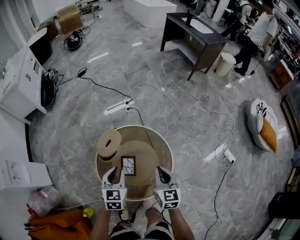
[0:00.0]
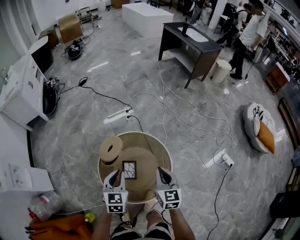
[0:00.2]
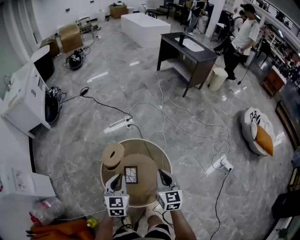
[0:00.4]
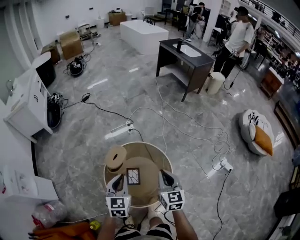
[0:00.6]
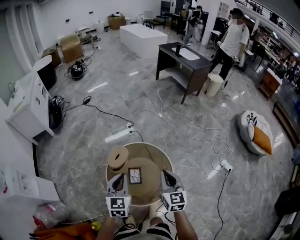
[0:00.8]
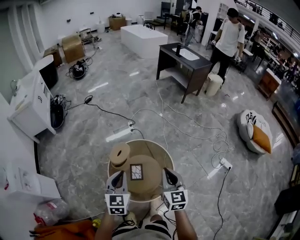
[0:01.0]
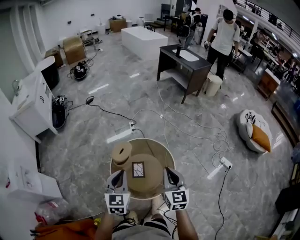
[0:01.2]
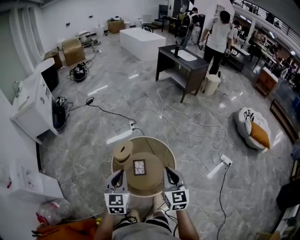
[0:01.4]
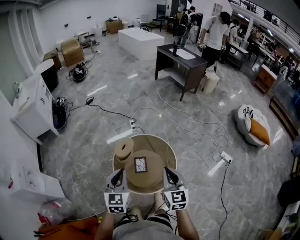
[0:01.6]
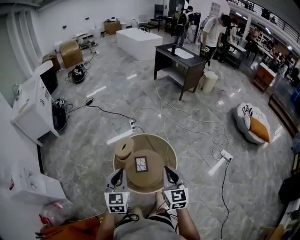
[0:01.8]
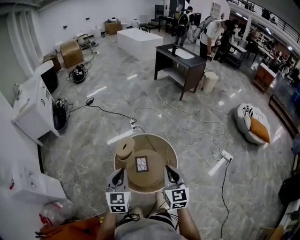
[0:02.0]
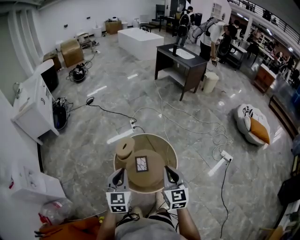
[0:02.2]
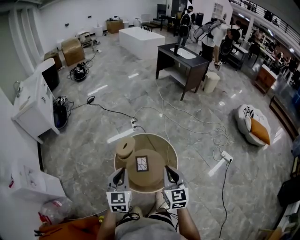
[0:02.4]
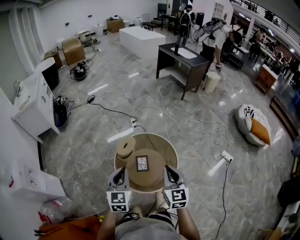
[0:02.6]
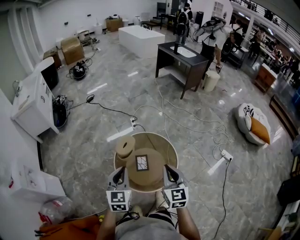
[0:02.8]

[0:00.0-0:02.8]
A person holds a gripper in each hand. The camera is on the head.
0:00.0 to 0:01.4: The grippers both shift upward and backward by approximately 30 cm.
0:01.4 to 0:02.8: There are only small adjustments of the grippers.

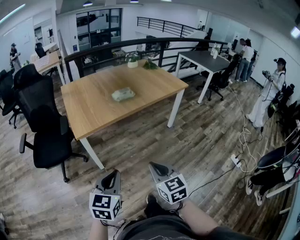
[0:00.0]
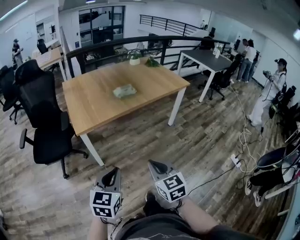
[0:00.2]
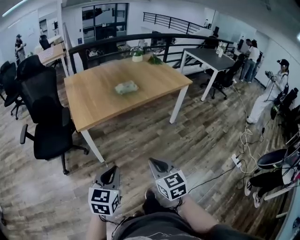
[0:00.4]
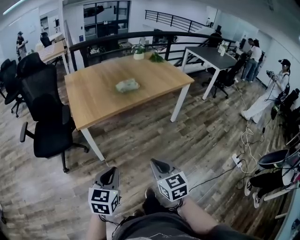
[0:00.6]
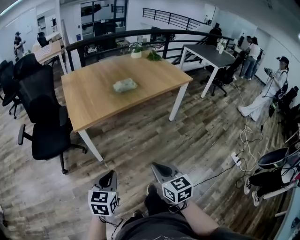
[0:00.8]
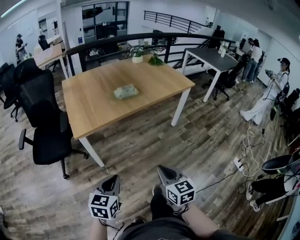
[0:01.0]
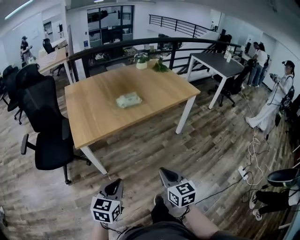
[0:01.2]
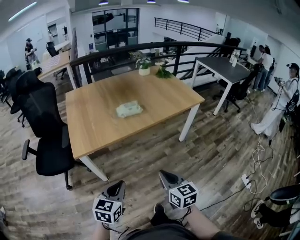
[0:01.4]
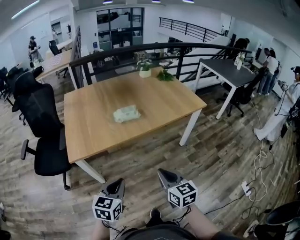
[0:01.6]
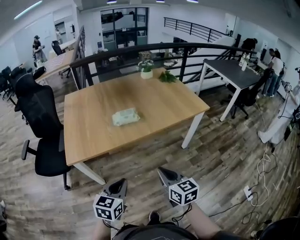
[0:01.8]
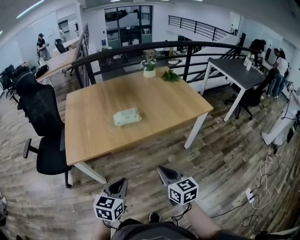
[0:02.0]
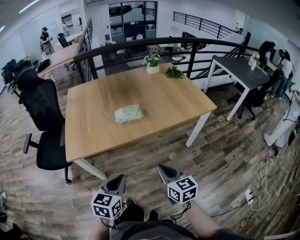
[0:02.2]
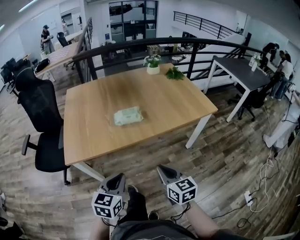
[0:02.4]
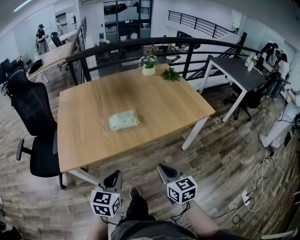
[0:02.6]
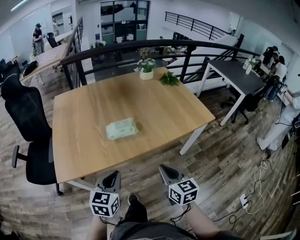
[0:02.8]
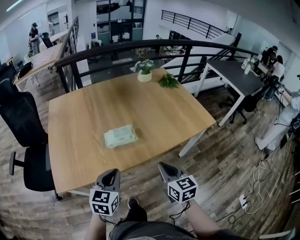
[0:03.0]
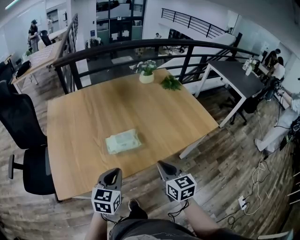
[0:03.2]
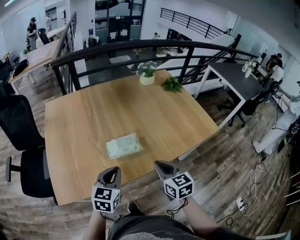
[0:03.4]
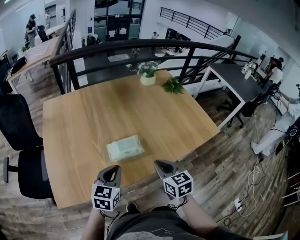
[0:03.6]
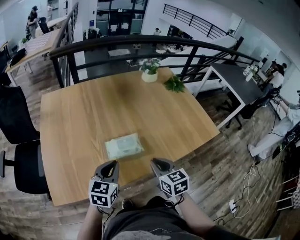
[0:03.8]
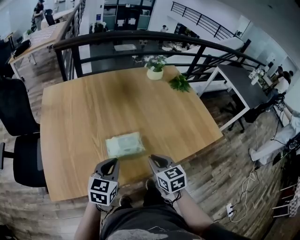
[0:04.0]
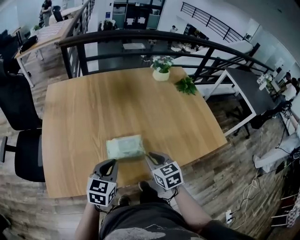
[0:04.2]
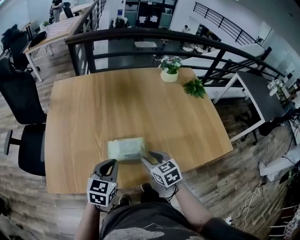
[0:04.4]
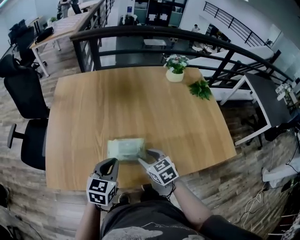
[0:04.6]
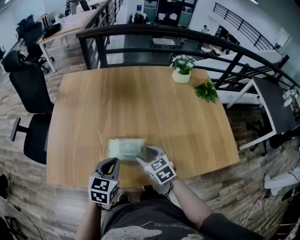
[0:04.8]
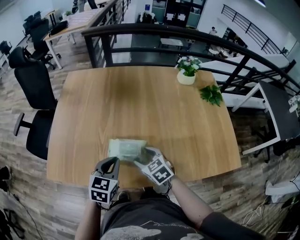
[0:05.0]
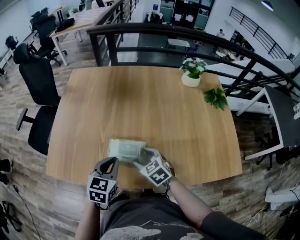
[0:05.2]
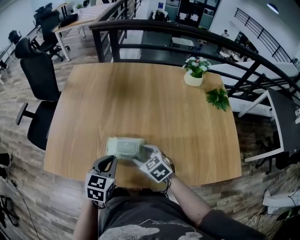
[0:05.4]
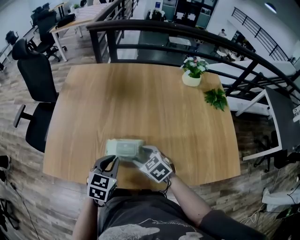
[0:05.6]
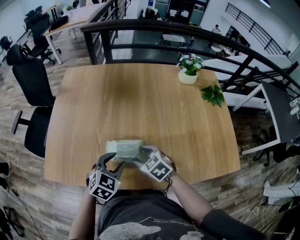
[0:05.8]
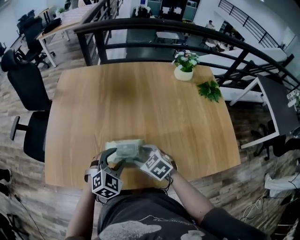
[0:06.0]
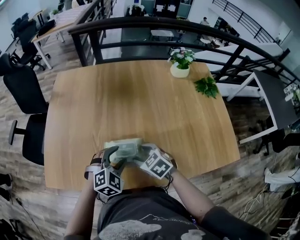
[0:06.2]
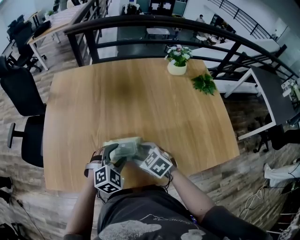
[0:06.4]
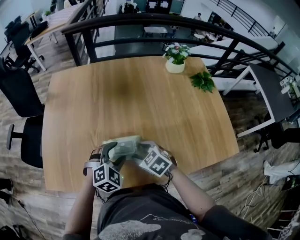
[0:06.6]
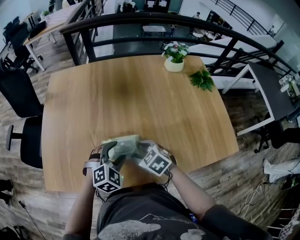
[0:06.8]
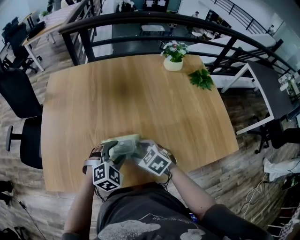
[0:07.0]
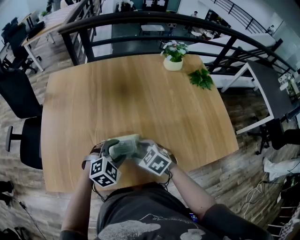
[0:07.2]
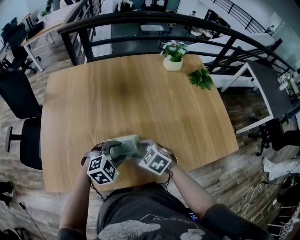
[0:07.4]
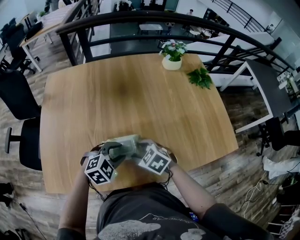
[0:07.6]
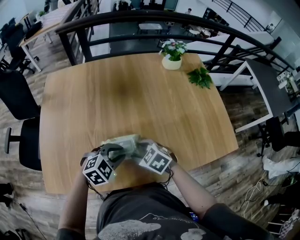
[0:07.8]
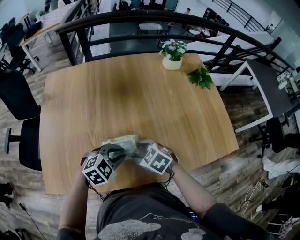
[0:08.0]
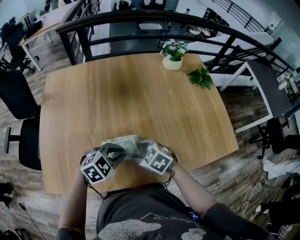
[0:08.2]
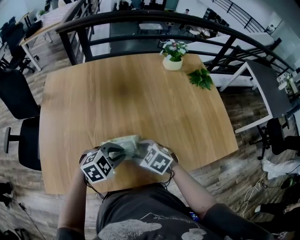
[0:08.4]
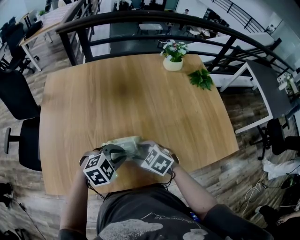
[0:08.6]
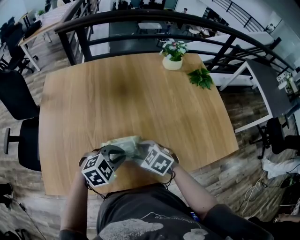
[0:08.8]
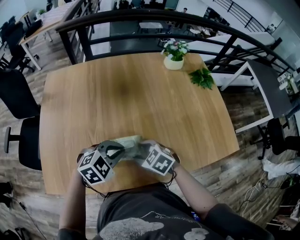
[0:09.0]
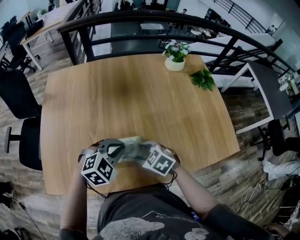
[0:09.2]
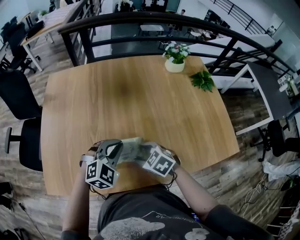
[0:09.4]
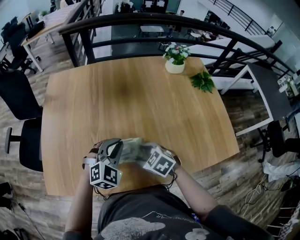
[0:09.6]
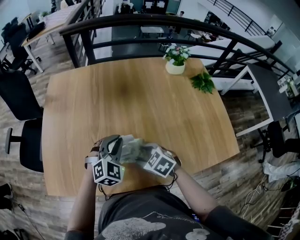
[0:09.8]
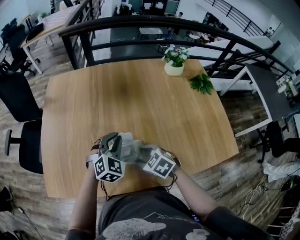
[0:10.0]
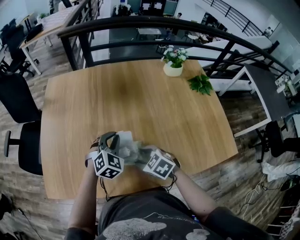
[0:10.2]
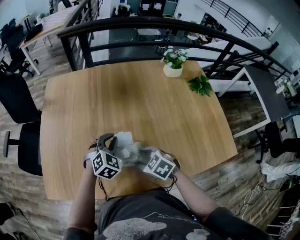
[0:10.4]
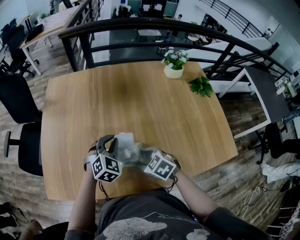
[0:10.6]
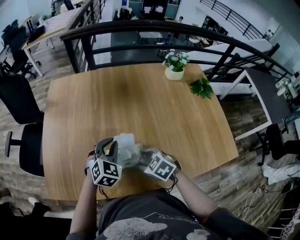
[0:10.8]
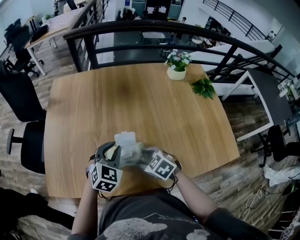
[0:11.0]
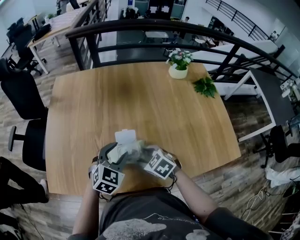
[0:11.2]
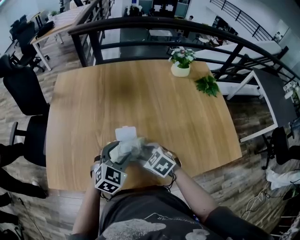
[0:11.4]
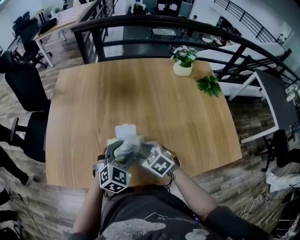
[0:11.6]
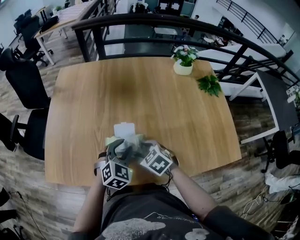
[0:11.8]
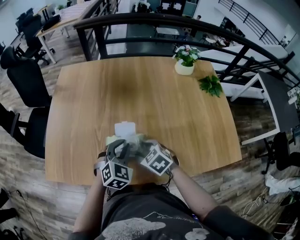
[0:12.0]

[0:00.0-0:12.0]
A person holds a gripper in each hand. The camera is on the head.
0:00.0 to 0:01.6: Both grippers travel together forward and to the right, roughly 25 cm.
0:01.6 to 0:03.0: The grippers both shift forward by some 25 cm.
0:03.0 to 0:04.4: The right gripper shifts roughly 25 cm forward and downward, turns by about 30 degrees, and opens up, while the left gripper shifts approximately 15 cm forward.
0:04.4 to 0:06.0: The left gripper travels to the right by roughly 5 cm, swivels approximately 40 degrees, and opens its fingers. Meanwhile the right gripper moves roughly 5 cm, turns by roughly 30 degrees, and opens.
0:06.0 to 0:07.6: The left gripper turns by some 30 degrees.
0:07.6 to 0:09.0: The left gripper closes its fingers.
0:09.0 to 0:10.4: The left gripper travels forward by approximately 10 cm, and turns by roughly 30 degrees.
0:10.4 to 0:12.0: The left gripper heads backward, covering about 10 cm, and opens, then closes once more.

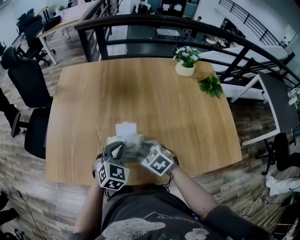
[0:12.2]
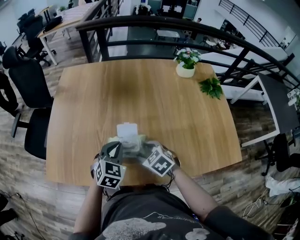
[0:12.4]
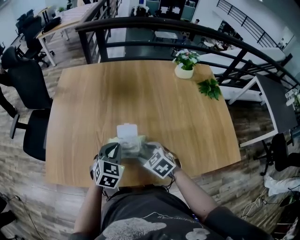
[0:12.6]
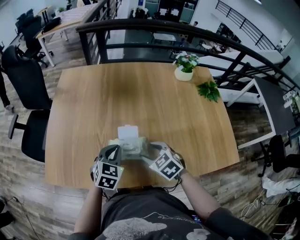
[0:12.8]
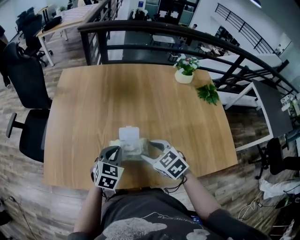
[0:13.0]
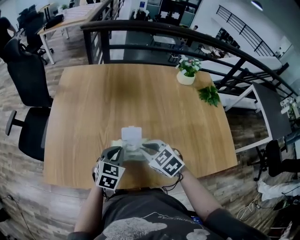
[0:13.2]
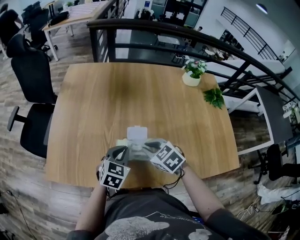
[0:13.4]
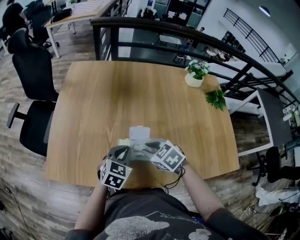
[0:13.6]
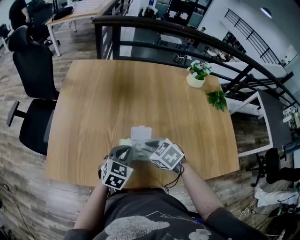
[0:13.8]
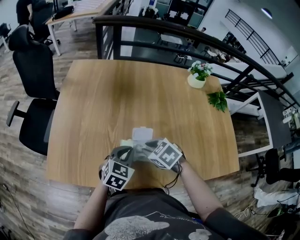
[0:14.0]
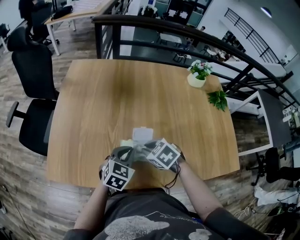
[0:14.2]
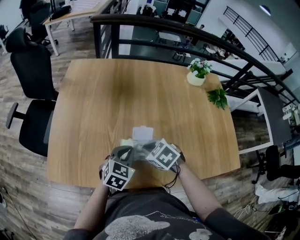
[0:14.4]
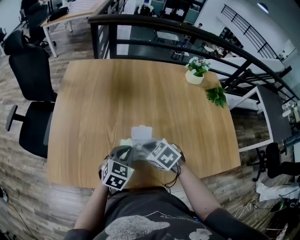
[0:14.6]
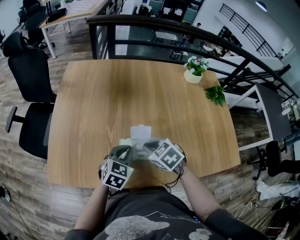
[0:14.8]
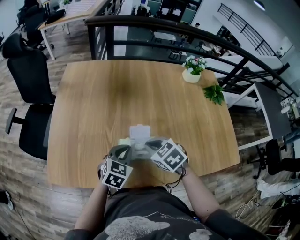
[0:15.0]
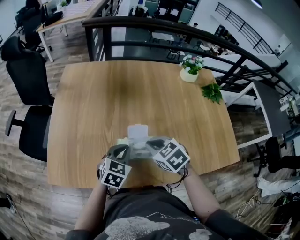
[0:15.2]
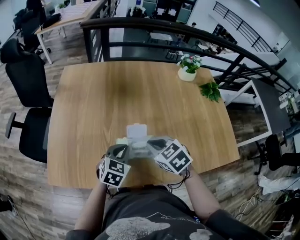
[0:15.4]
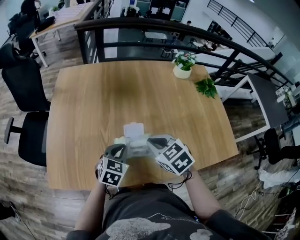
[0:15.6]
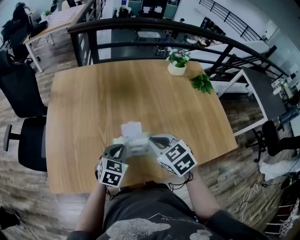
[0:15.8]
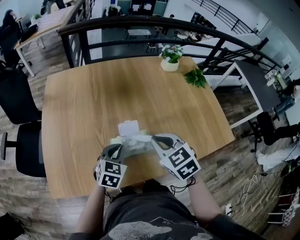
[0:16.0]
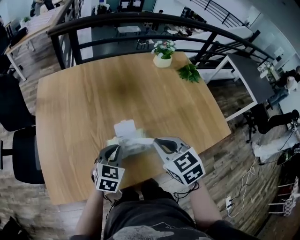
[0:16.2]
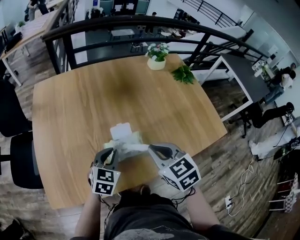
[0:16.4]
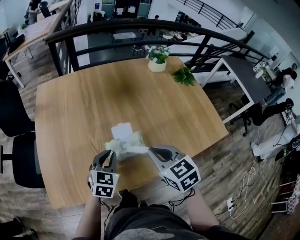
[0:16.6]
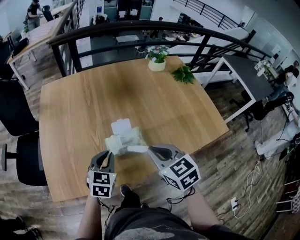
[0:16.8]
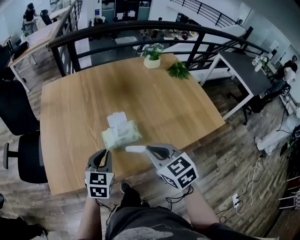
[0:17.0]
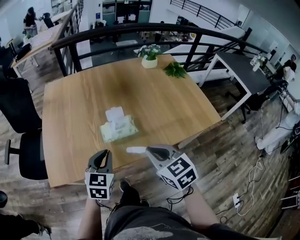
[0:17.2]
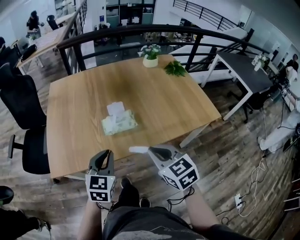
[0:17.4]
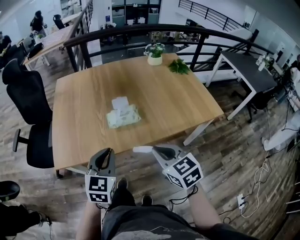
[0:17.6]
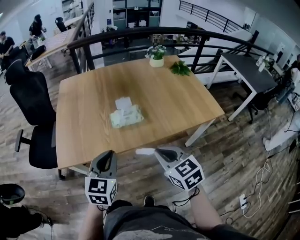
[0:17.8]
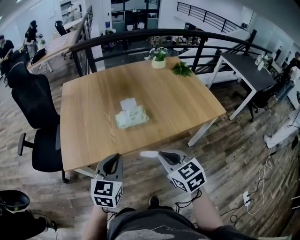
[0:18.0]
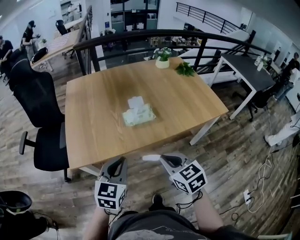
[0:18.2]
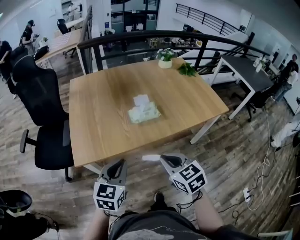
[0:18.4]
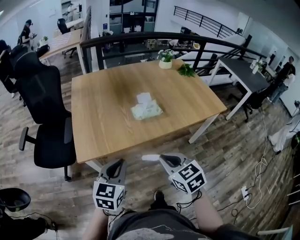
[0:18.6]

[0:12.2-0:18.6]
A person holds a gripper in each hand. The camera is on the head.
0:12.2 to 0:13.8: The right gripper ends up some 5 cm from where it was, and closes its fingers.
0:13.8 to 0:15.4: The right gripper goes roughly 5 cm upward.
0:15.4 to 0:17.0: The grippers both shift backward and upward by roughly 15 cm. The right gripper changes its angle by about 30 degrees.
0:17.0 to 0:18.6: The grippers both shift backward and to the left by approximately 30 cm.

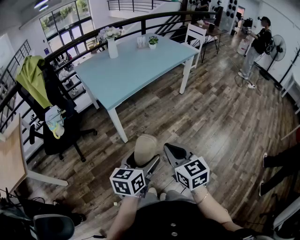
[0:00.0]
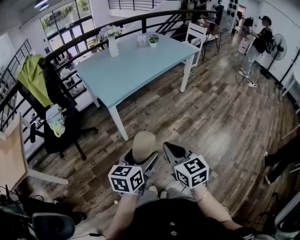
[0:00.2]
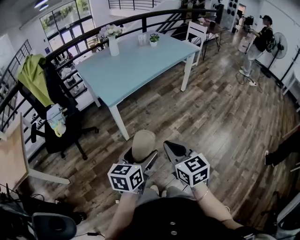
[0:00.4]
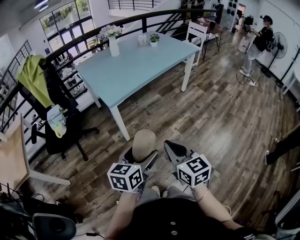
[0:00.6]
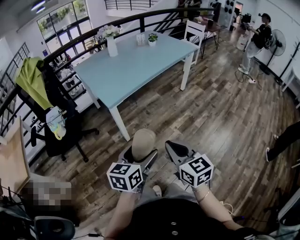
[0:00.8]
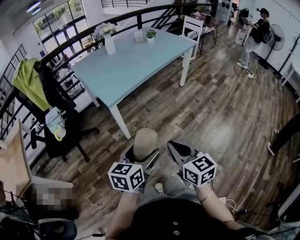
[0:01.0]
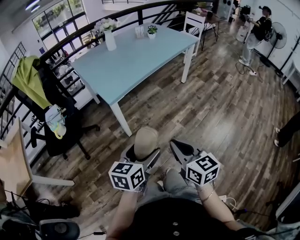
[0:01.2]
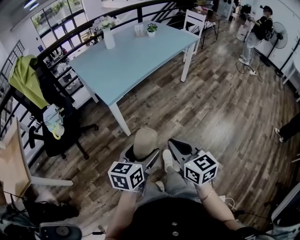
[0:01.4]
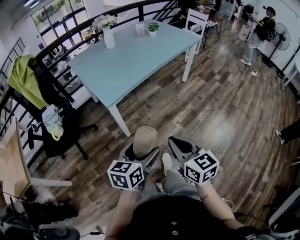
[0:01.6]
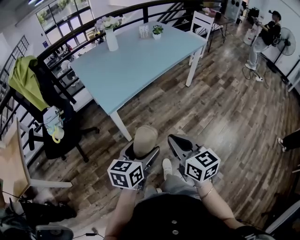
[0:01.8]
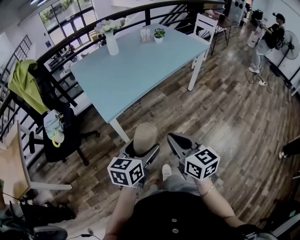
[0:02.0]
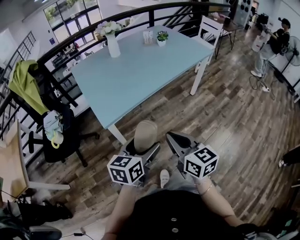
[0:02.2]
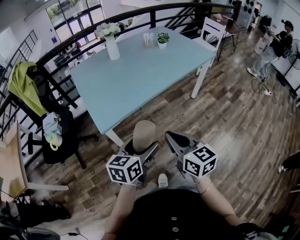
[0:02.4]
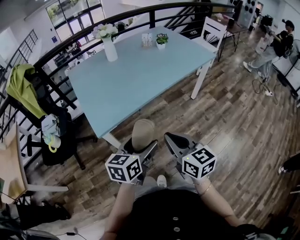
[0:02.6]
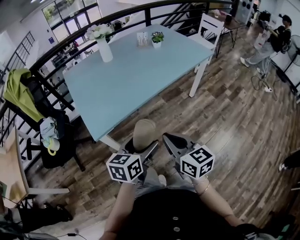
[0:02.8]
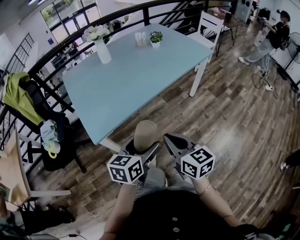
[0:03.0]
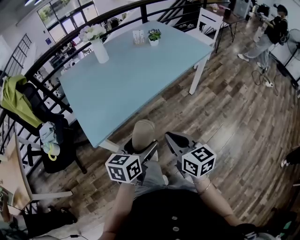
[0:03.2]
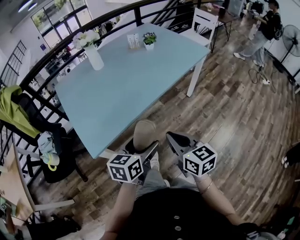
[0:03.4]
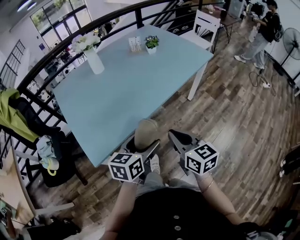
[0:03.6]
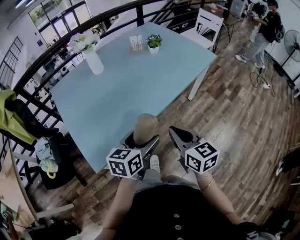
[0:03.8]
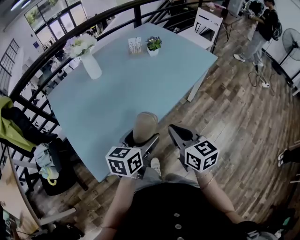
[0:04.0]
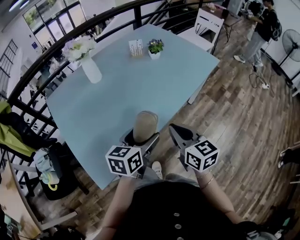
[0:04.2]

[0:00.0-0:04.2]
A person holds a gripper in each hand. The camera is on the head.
0:00.0 to 0:01.4: The left gripper changes place by some 5 cm.
0:01.4 to 0:02.8: The grippers both shift forward by approximately 30 cm.
0:02.8 to 0:04.2: The two grippers go some 30 cm forward.
